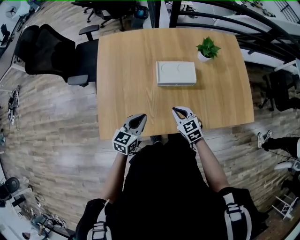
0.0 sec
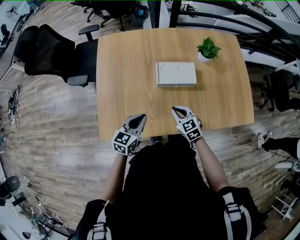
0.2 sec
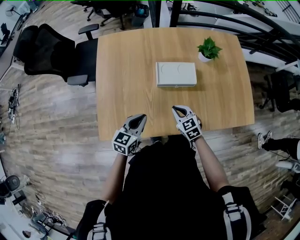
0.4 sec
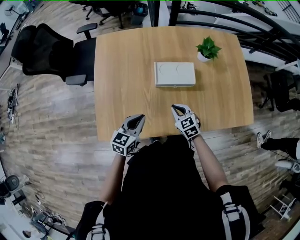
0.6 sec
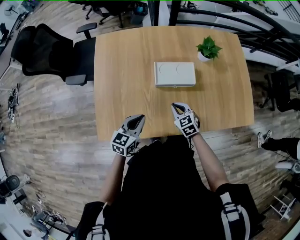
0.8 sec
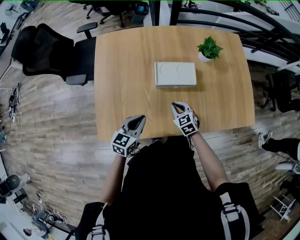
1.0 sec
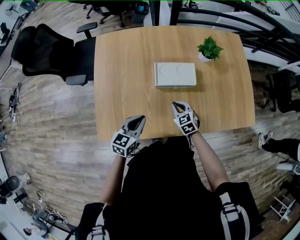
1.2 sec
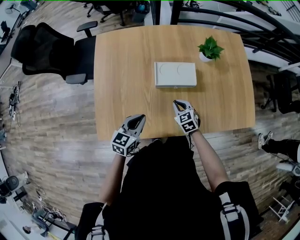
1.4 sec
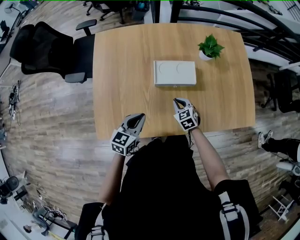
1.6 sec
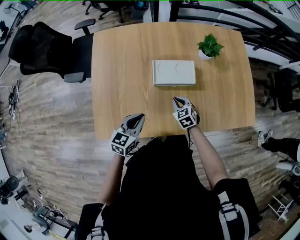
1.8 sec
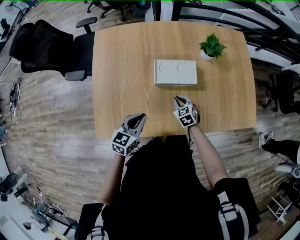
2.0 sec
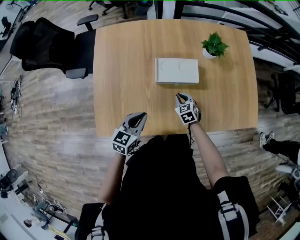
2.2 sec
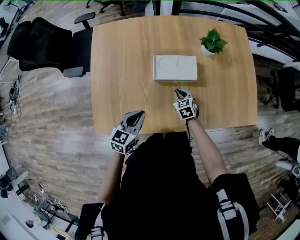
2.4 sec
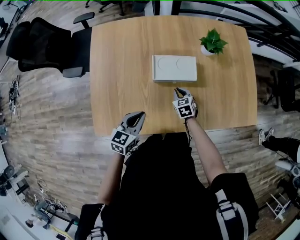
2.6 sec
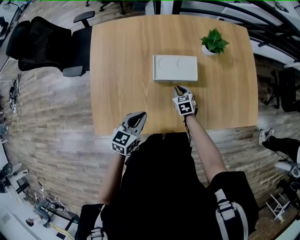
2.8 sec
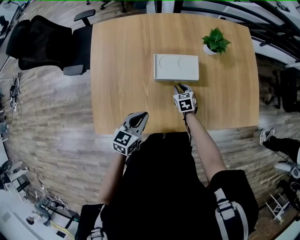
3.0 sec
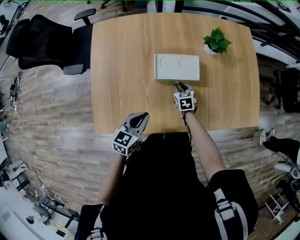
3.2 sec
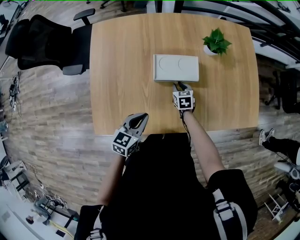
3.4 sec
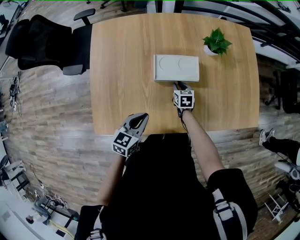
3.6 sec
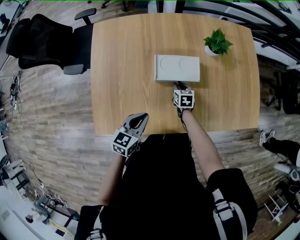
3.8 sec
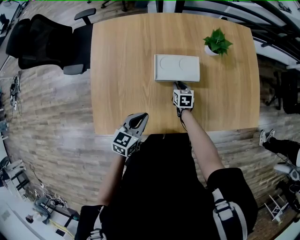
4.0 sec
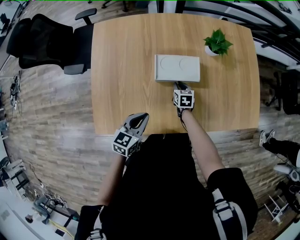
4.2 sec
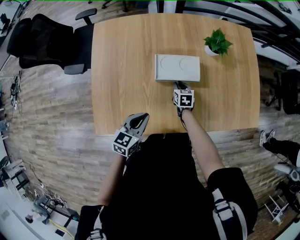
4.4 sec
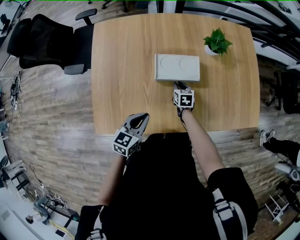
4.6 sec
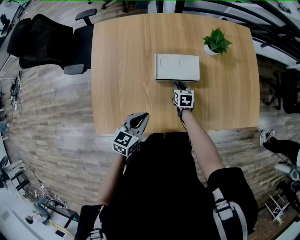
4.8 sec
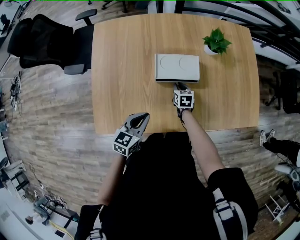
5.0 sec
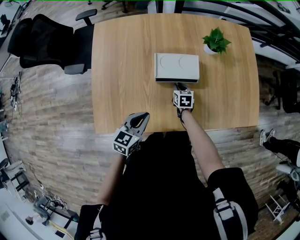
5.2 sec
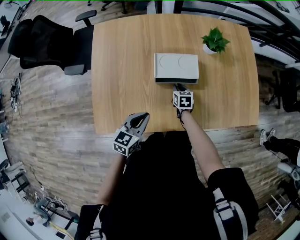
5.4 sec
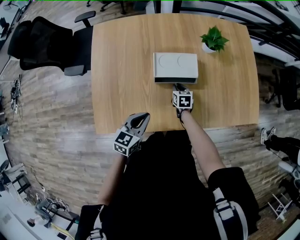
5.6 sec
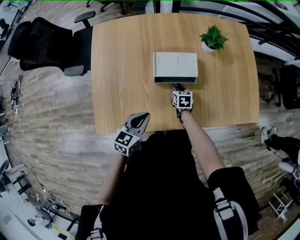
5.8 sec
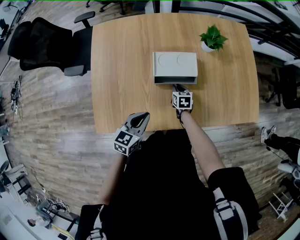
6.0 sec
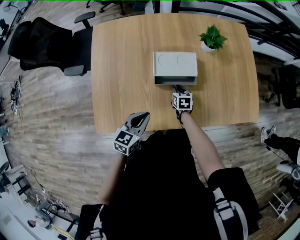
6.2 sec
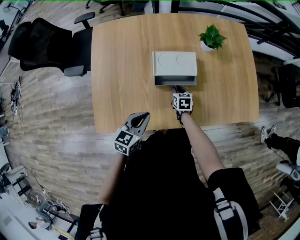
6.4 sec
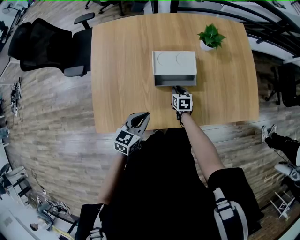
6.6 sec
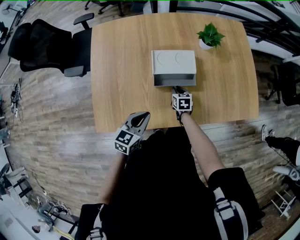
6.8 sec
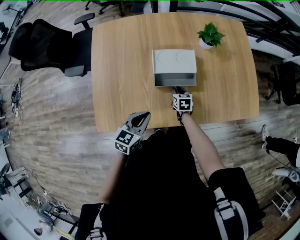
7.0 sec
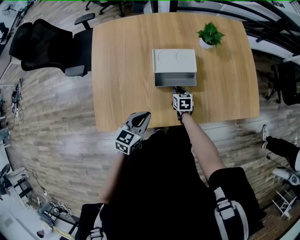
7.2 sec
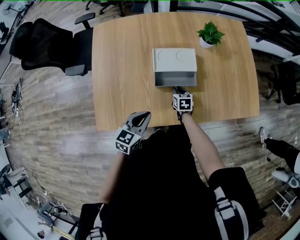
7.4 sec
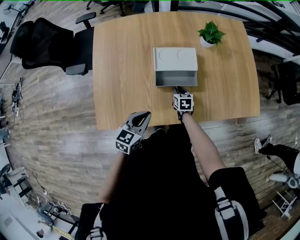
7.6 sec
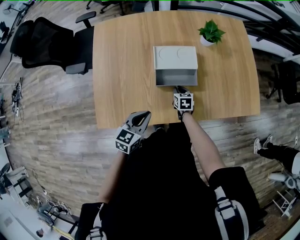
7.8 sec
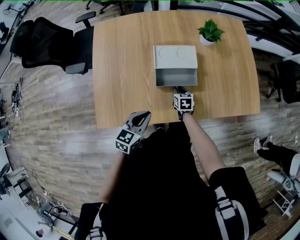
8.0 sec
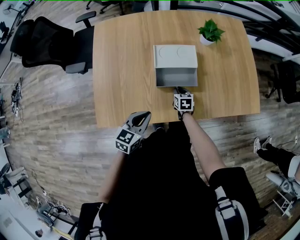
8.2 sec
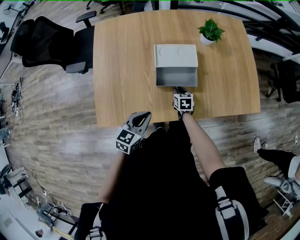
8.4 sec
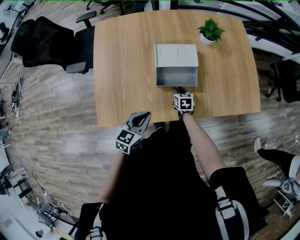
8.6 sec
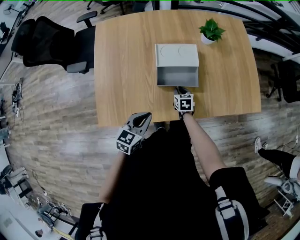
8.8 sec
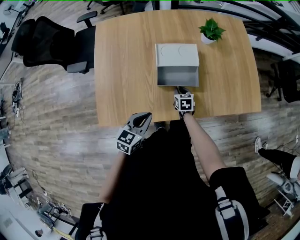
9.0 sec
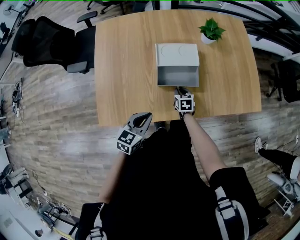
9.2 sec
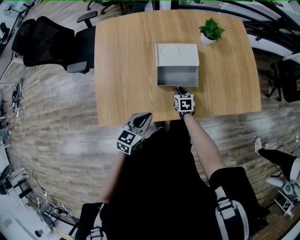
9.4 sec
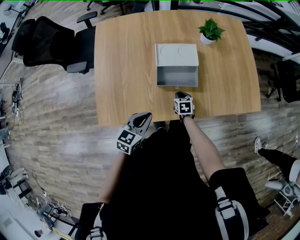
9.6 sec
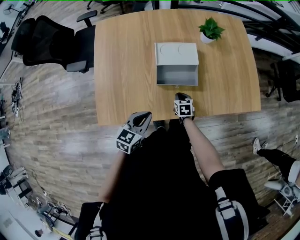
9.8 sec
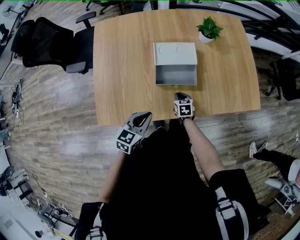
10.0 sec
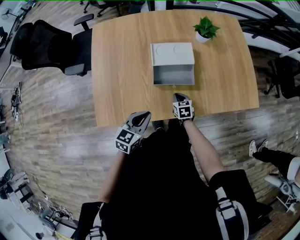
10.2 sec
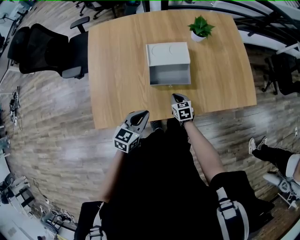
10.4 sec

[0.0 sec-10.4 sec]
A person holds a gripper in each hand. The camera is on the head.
0.0 sec to 1.4 sec: The right gripper is displaced forward and downward by some 10 cm.
1.4 sec to 3.0 sec: The right gripper heads downward and forward, covering roughly 10 cm.
3.0 sec to 6.0 sec: There are only small adjustments of the grippers.
6.0 sec to 7.4 sec: There are only small adjustments of the grippers.
7.4 sec to 9.0 sec: There are only small adjustments of the grippers.
9.0 sec to 10.4 sec: The right gripper moves backward, approximately 5 cm.

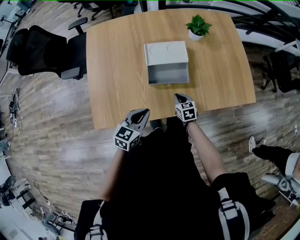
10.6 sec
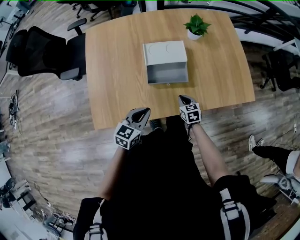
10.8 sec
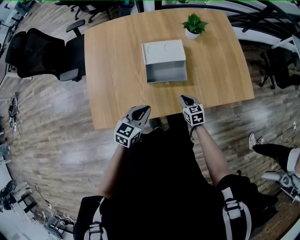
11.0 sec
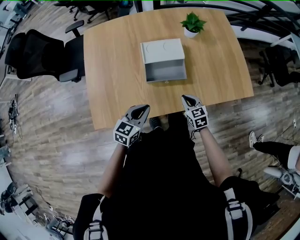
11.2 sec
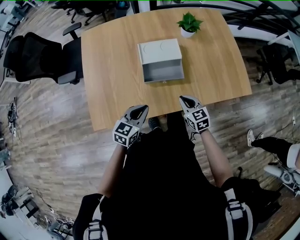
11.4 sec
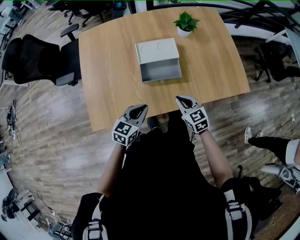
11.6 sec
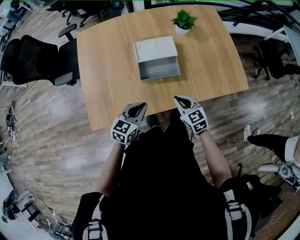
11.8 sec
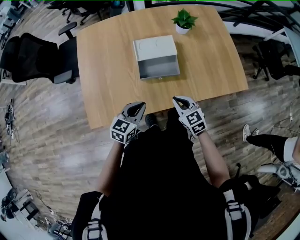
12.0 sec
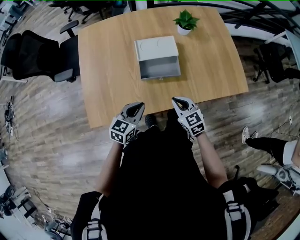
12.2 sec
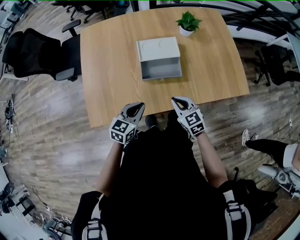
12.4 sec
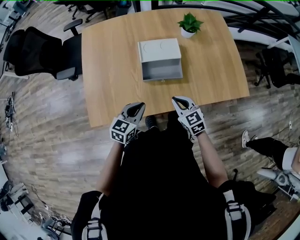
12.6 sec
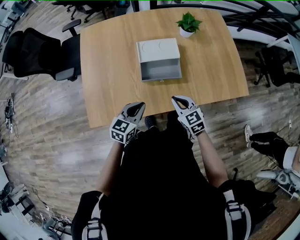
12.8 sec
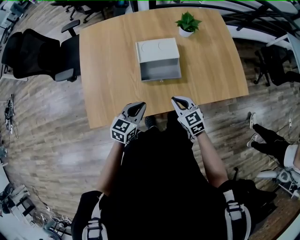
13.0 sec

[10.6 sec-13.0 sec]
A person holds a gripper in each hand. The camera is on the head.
10.6 sec to 11.8 sec: The right gripper shifts about 15 cm upward and backward.
11.8 sec to 13.0 sec: There are only small adjustments of the grippers.

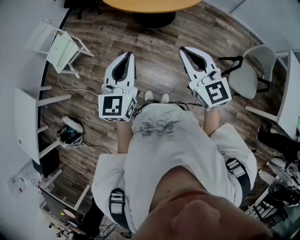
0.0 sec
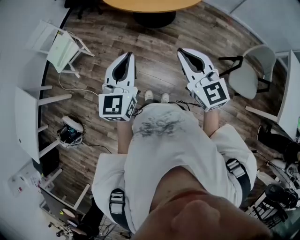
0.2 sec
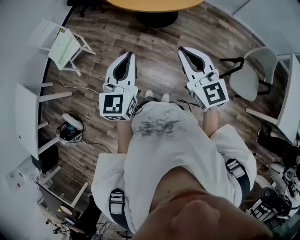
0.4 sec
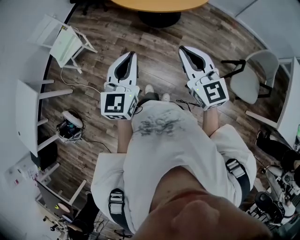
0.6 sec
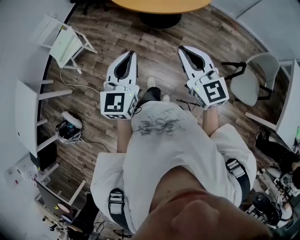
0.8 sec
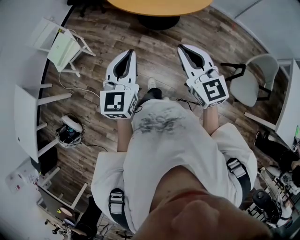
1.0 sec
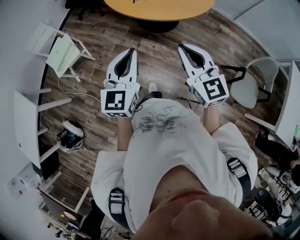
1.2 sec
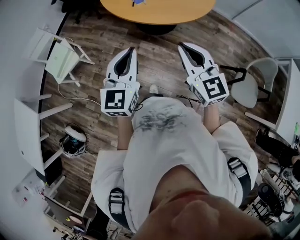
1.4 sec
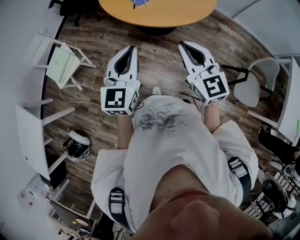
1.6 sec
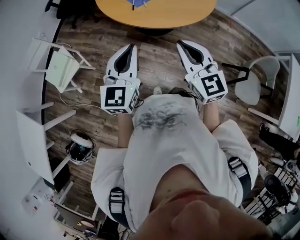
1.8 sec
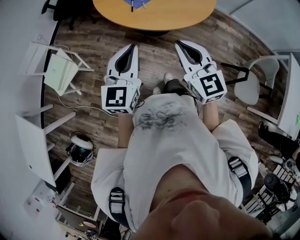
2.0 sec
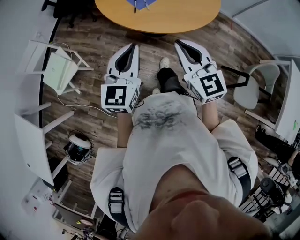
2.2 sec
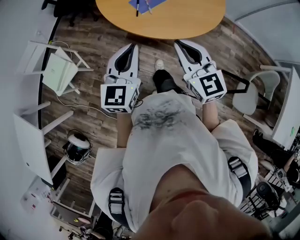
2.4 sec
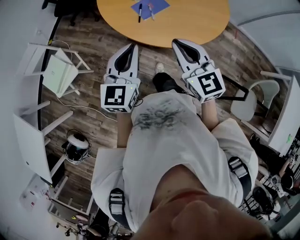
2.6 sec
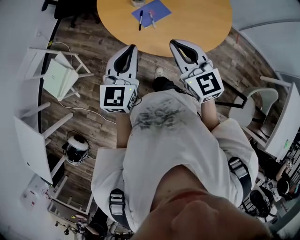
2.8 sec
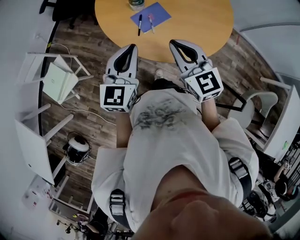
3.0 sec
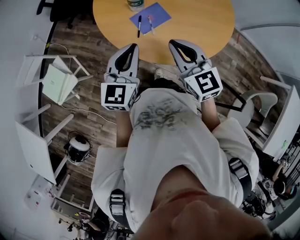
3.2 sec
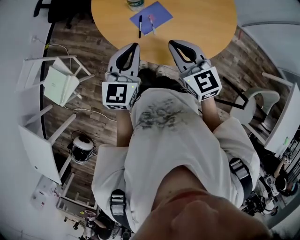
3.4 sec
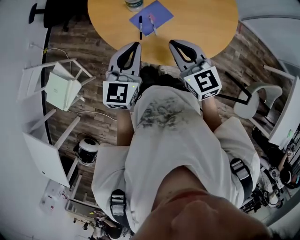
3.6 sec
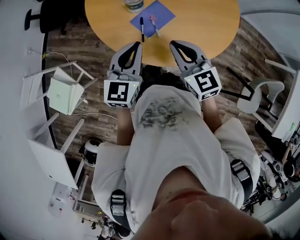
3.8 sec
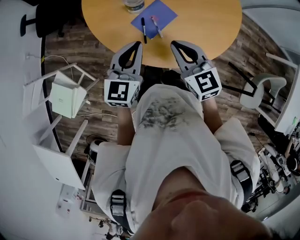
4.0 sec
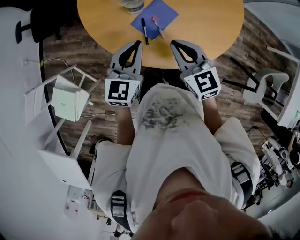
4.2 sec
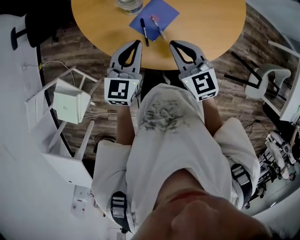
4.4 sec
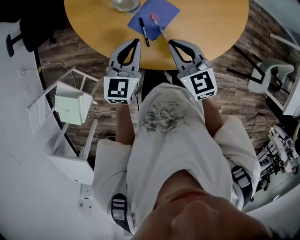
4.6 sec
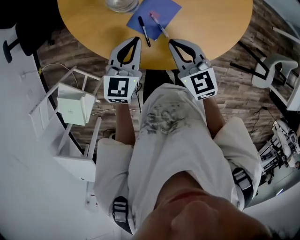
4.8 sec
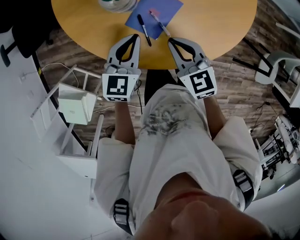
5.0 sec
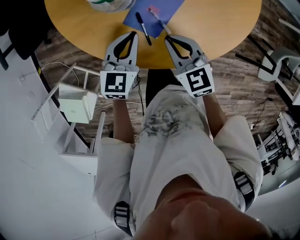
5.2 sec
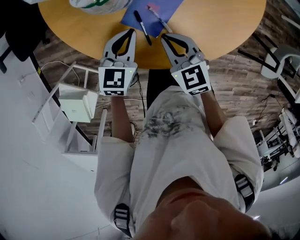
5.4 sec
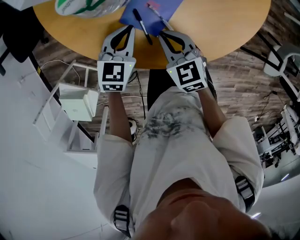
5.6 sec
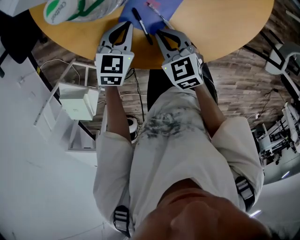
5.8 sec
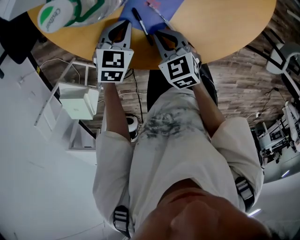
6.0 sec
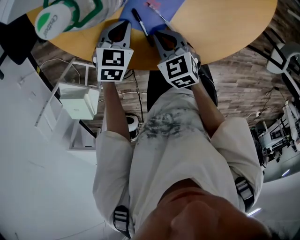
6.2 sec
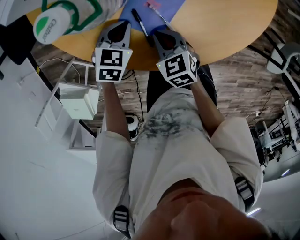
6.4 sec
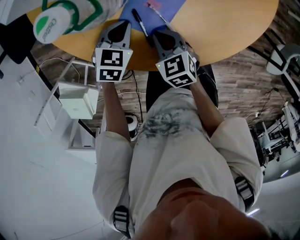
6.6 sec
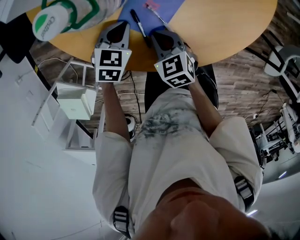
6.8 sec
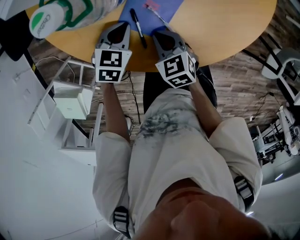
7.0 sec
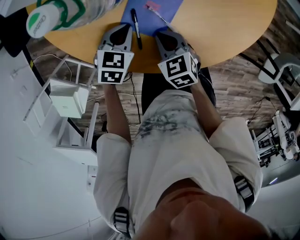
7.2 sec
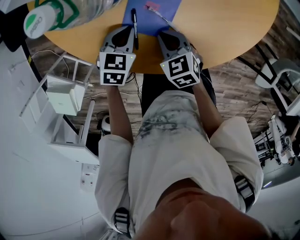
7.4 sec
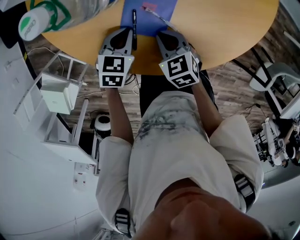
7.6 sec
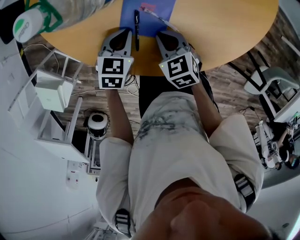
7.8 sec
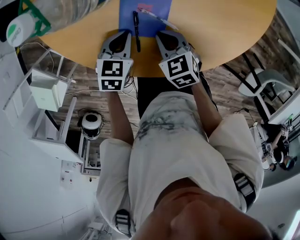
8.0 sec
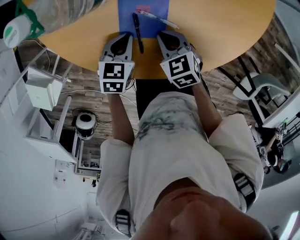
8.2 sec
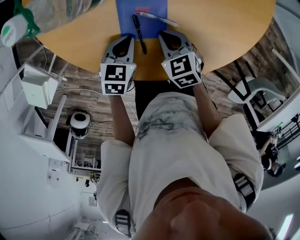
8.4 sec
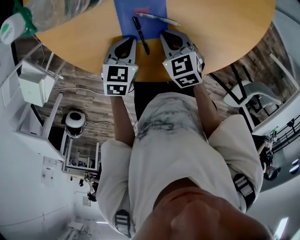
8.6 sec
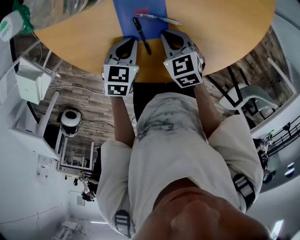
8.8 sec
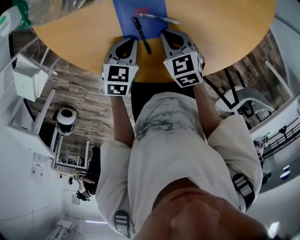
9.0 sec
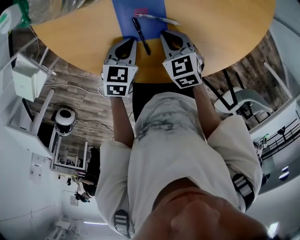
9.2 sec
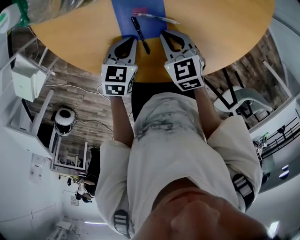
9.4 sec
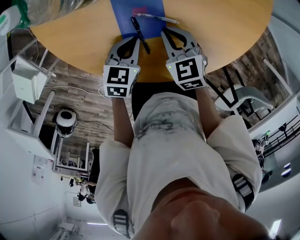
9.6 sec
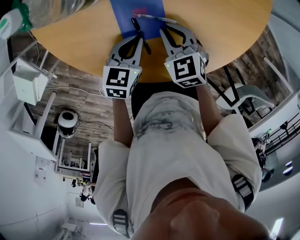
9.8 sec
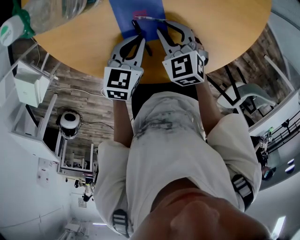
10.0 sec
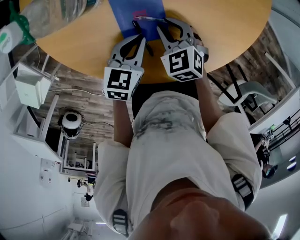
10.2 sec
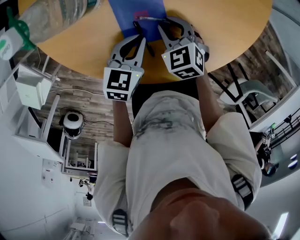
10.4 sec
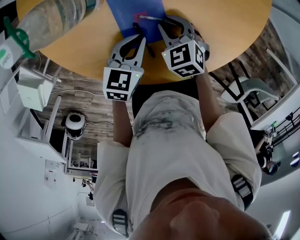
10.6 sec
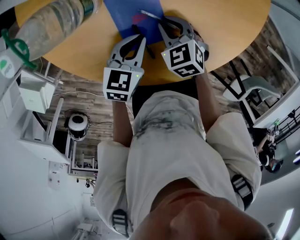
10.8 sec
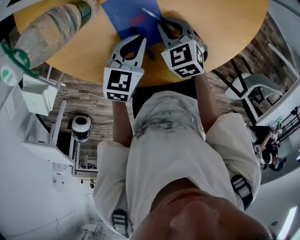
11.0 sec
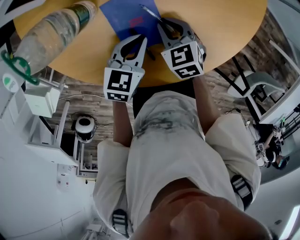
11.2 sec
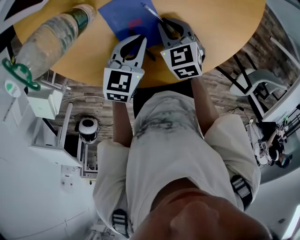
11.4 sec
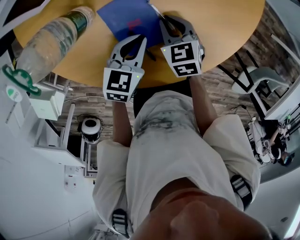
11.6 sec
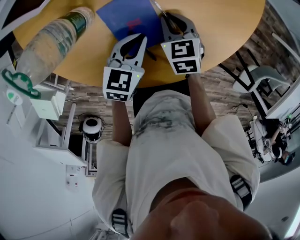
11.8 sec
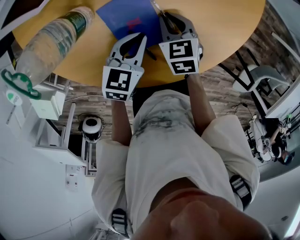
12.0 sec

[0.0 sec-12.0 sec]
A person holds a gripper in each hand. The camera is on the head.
0.0 sec to 1.6 sec: Both grippers move forward, roughly 20 cm.
1.6 sec to 3.0 sec: Both grippers move forward, roughly 35 cm.
3.0 sec to 4.4 sec: The right gripper is displaced downward and forward by about 20 cm, and turns by about 20 degrees. The left gripper moves forward and downward, approximately 25 cm, and turns by about 20 degrees.
4.4 sec to 6.0 sec: Both grippers travel together downward, roughly 25 cm. The right gripper changes its angle by about 20 degrees, while the left gripper rotates approximately 30 degrees.
6.0 sec to 7.6 sec: The left gripper ends up some 5 cm from where it was. Meanwhile the right gripper goes approximately 5 cm to the right.
7.6 sec to 9.0 sec: Both grippers travel together to the right, roughly 10 cm. The left gripper changes its angle by approximately 20 degrees.
9.0 sec to 10.4 sec: The left gripper shifts by approximately 5 cm.
10.4 sec to 12.0 sec: The right gripper swivels roughly 30 degrees.
